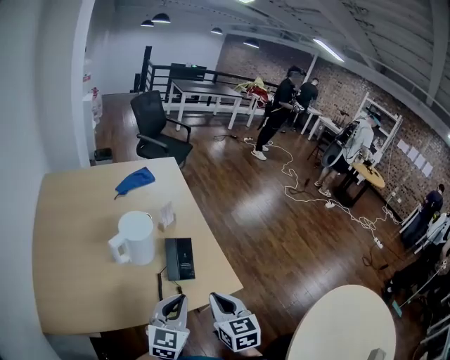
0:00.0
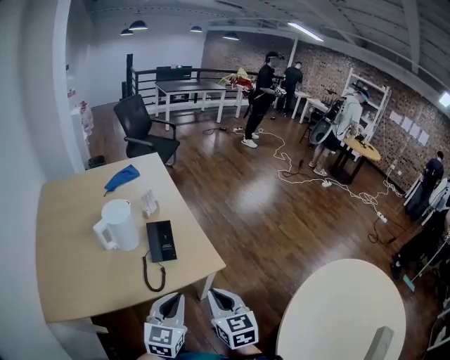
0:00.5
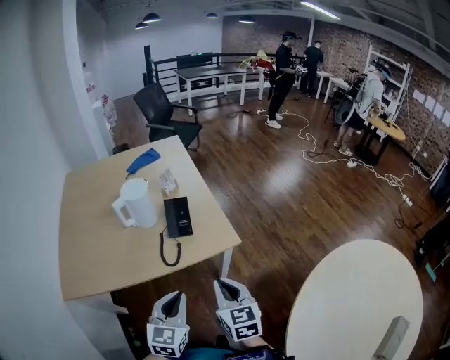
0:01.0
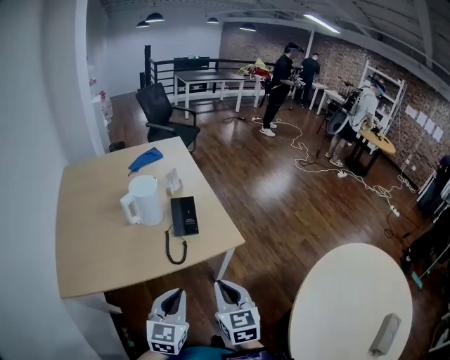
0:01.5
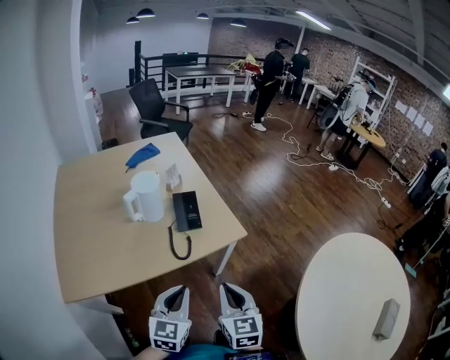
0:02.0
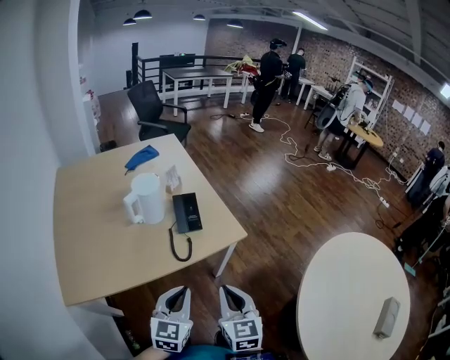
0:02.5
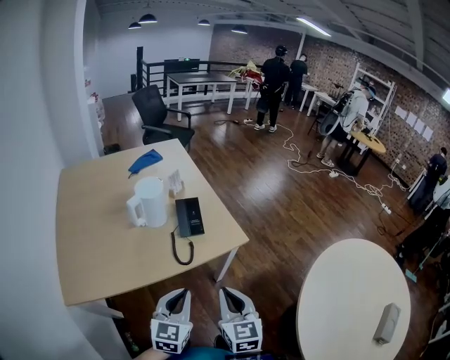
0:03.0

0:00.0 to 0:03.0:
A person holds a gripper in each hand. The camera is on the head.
0:00.0 to 0:01.5: Both grippers travel together backward, some 15 cm.
0:01.5 to 0:03.0: There are only small adjustments of the grippers.

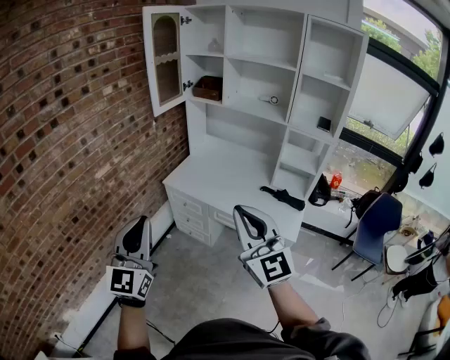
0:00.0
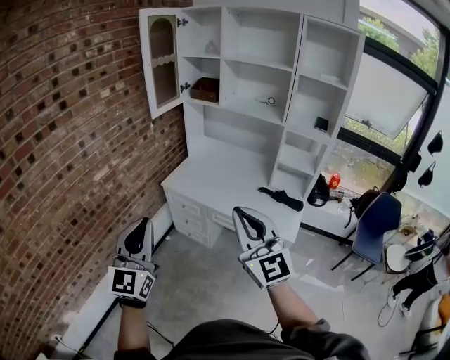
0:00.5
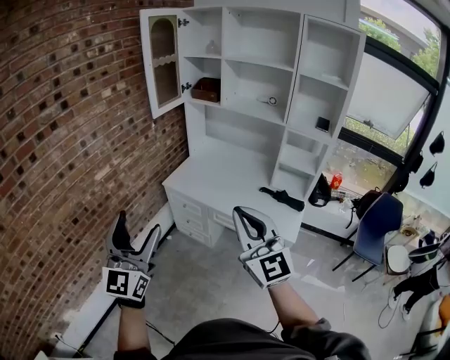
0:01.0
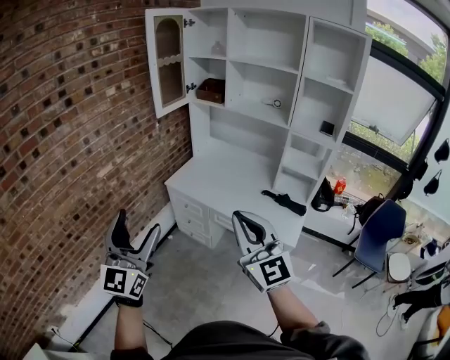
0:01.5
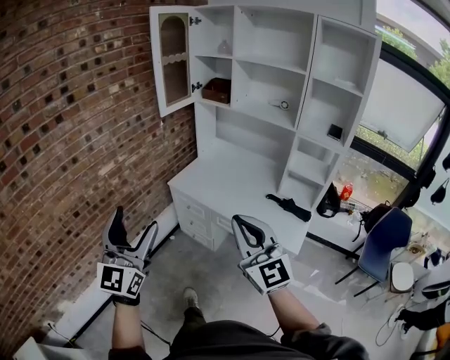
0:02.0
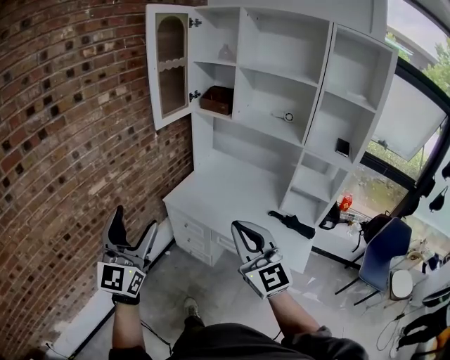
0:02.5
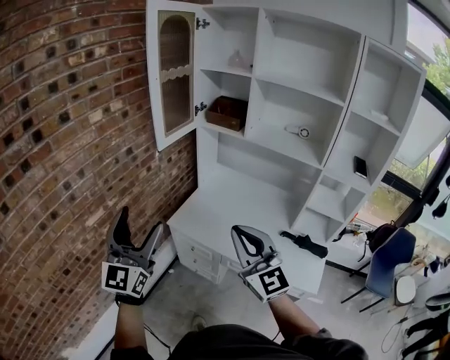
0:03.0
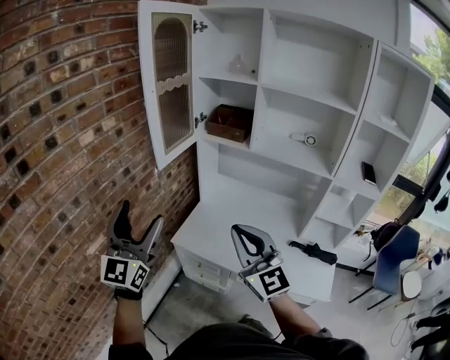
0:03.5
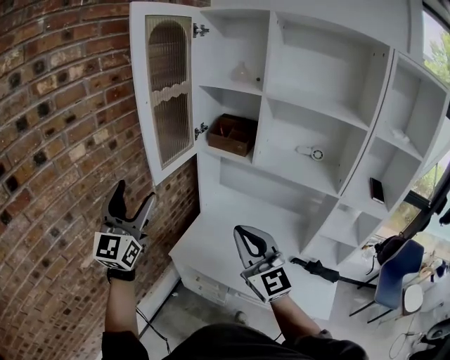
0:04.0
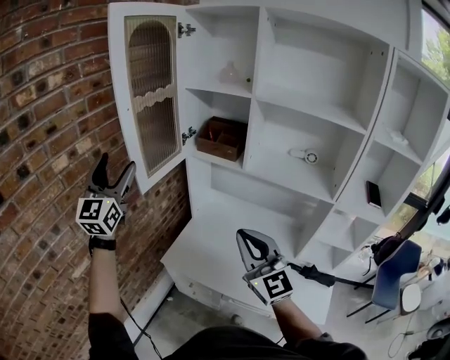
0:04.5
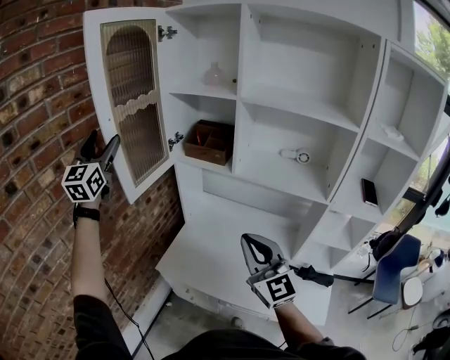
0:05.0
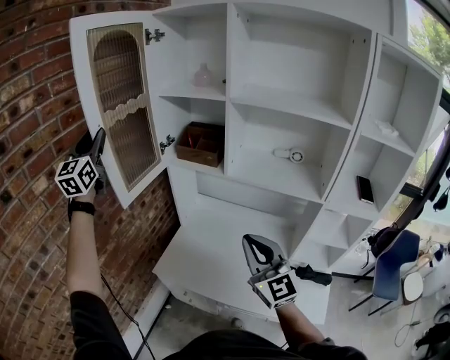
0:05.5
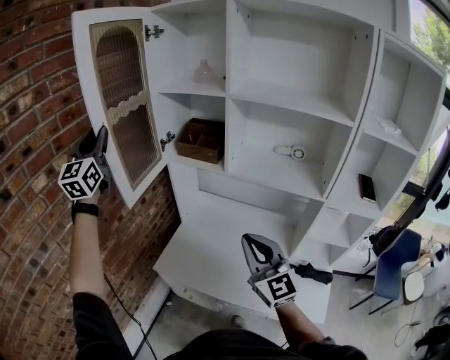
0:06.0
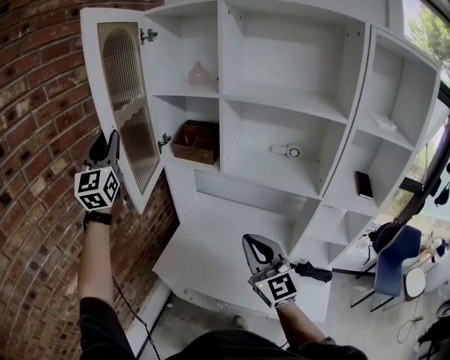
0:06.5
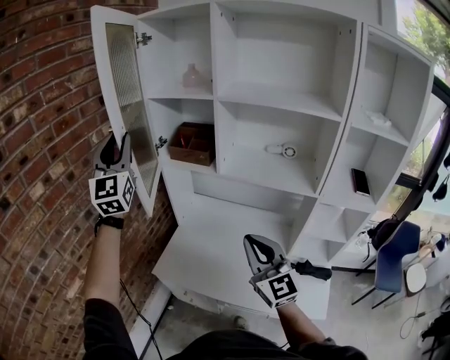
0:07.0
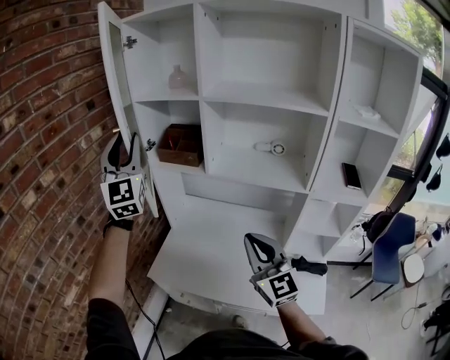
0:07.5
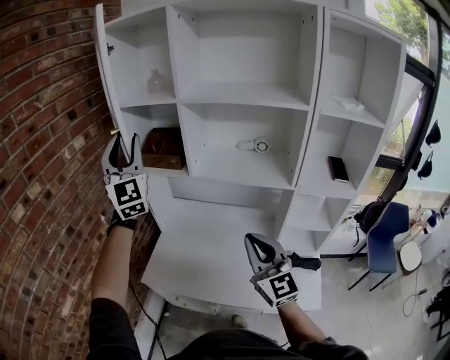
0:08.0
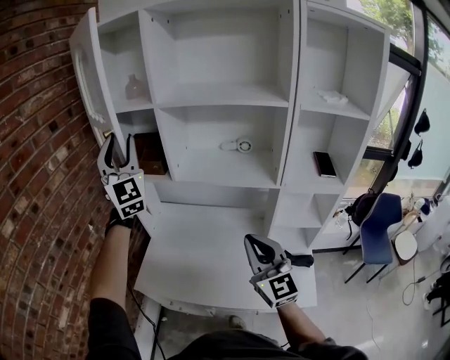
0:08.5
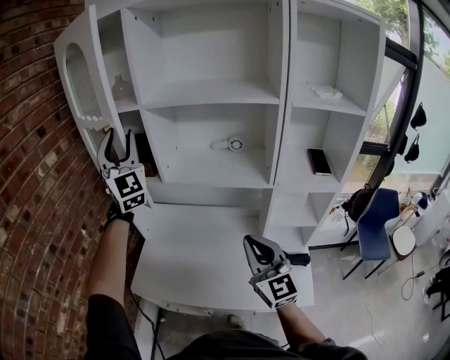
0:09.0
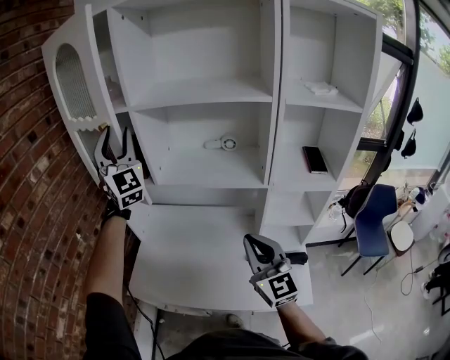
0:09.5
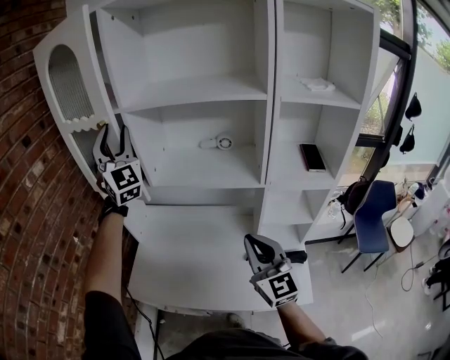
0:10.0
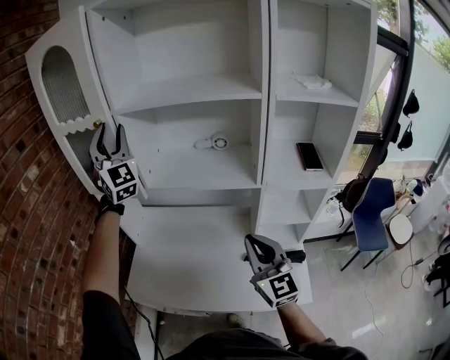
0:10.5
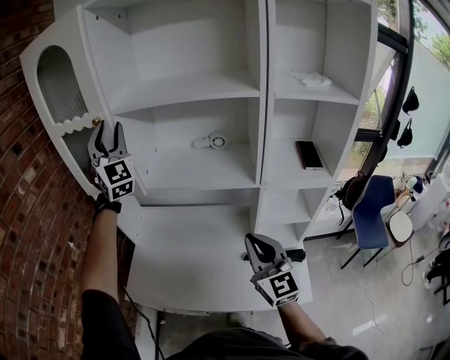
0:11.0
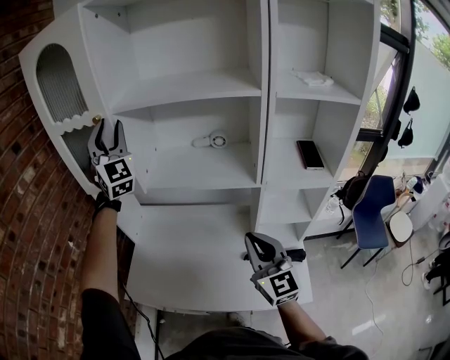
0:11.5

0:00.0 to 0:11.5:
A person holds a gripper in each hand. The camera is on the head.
0:00.0 to 0:02.0: The left gripper opens its fingers. Meanwhile the right gripper ends up roughly 5 cm from where it was.
0:02.0 to 0:04.0: Both grippers are carried forward, approximately 50 cm.
0:04.0 to 0:06.0: The left gripper is displaced forward and upward by about 25 cm, and closes; the right gripper travels to the right by some 10 cm.
0:06.0 to 0:07.5: The left gripper shifts approximately 15 cm to the right.
0:07.5 to 0:09.5: The right gripper is displaced to the right by approximately 15 cm; the left gripper shifts approximately 20 cm to the right and forward.
0:09.5 to 0:11.5: The left gripper shifts about 5 cm forward.

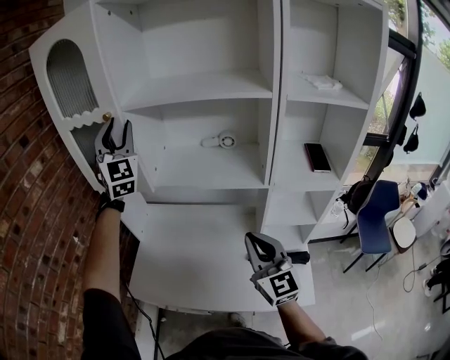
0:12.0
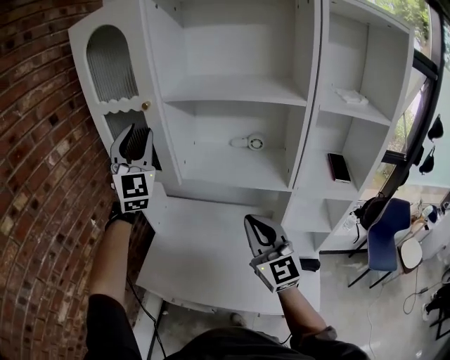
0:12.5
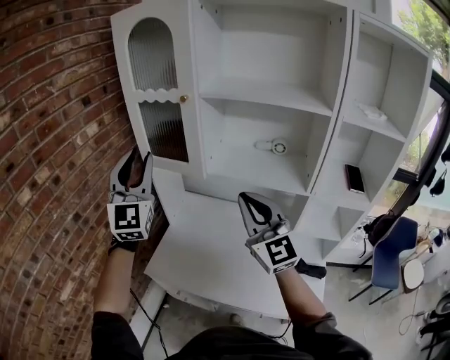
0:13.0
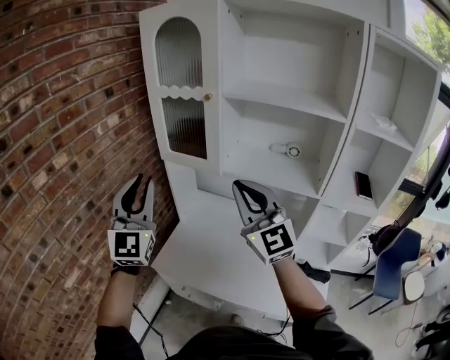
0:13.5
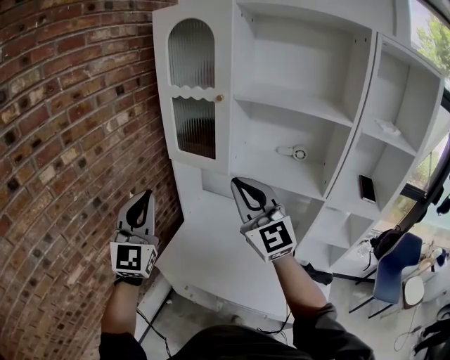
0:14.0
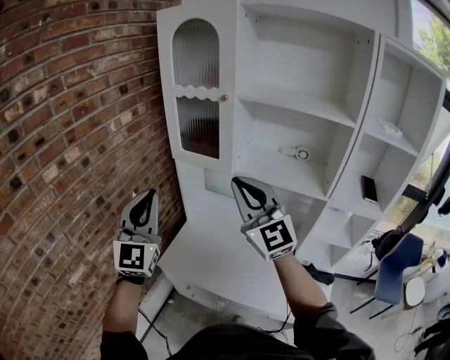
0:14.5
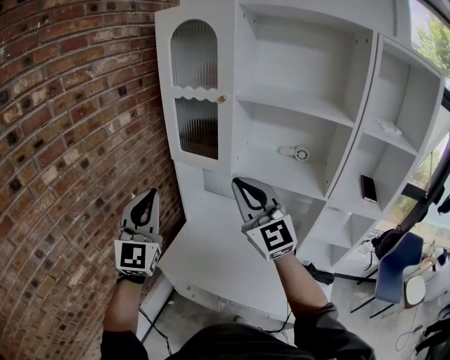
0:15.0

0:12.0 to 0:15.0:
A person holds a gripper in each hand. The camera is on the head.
0:12.0 to 0:13.5: The left gripper travels backward and to the left by approximately 30 cm. Meanwhile the right gripper heads to the left and upward, covering some 25 cm, and swivels roughly 30 degrees.
0:13.5 to 0:15.0: The grippers make only small movements.

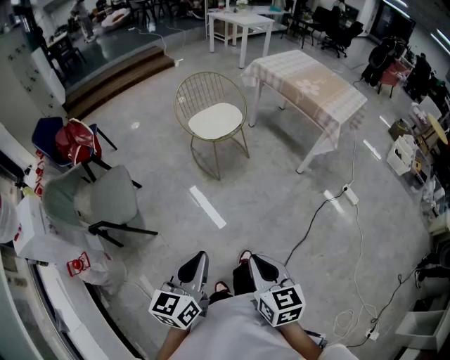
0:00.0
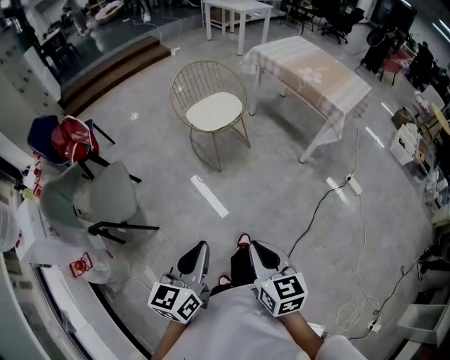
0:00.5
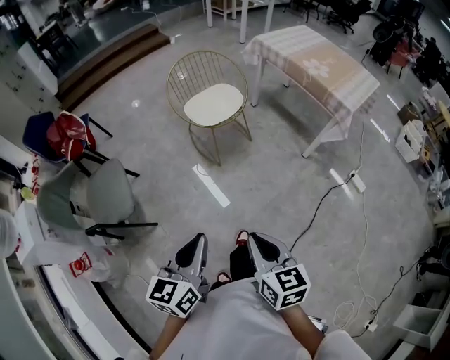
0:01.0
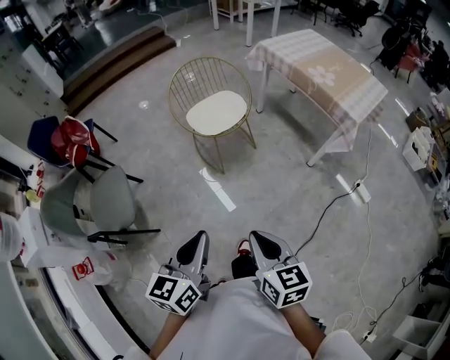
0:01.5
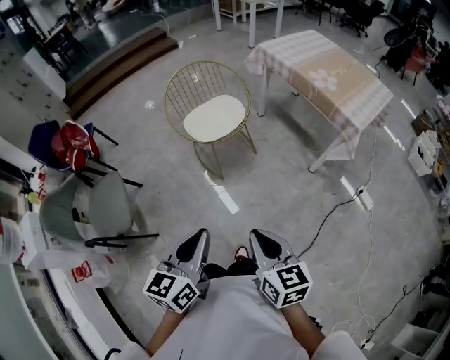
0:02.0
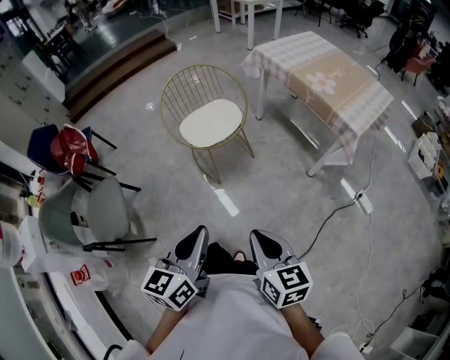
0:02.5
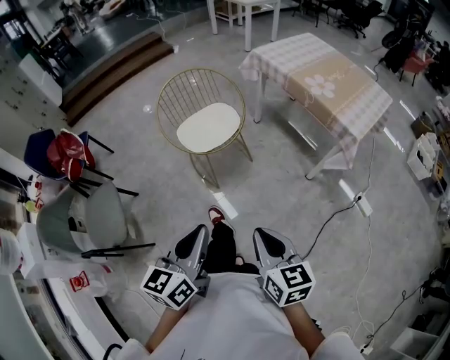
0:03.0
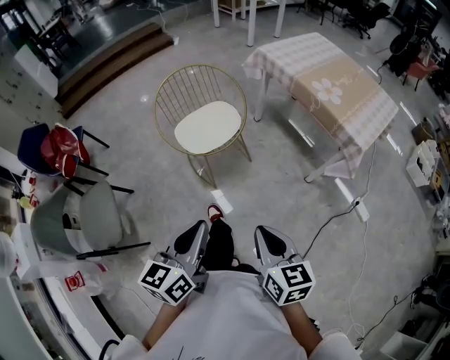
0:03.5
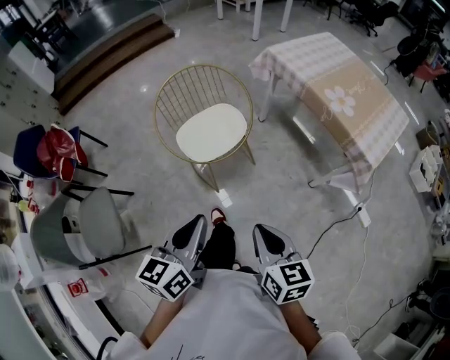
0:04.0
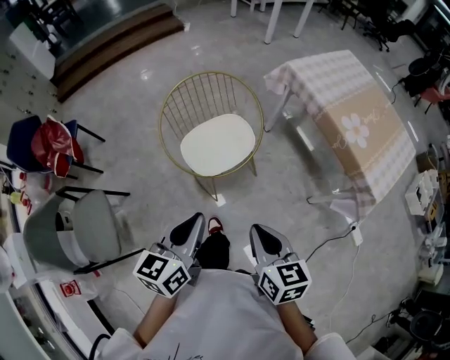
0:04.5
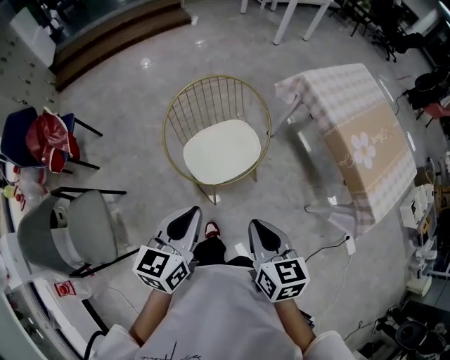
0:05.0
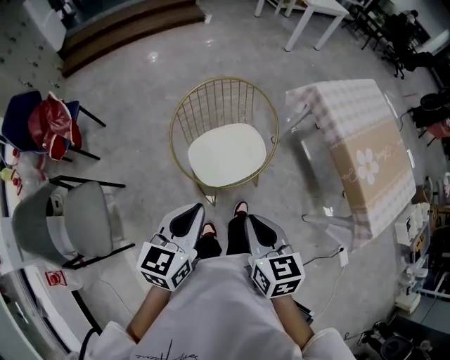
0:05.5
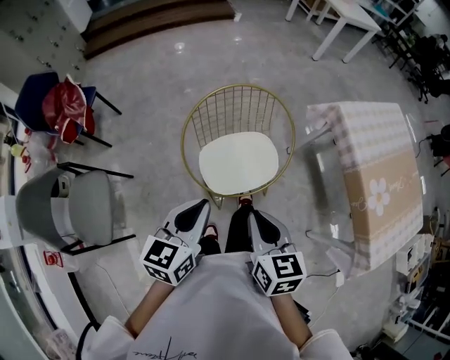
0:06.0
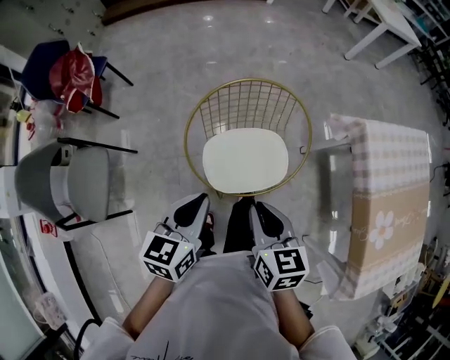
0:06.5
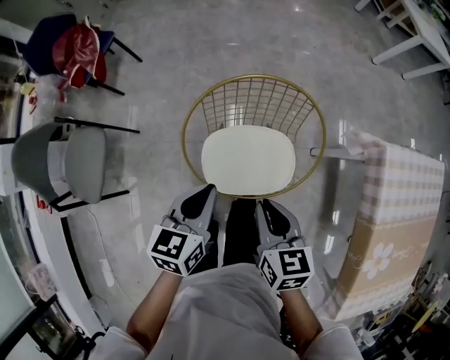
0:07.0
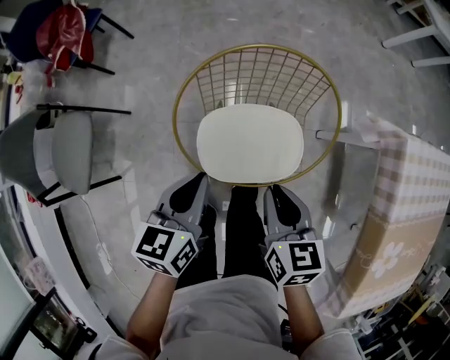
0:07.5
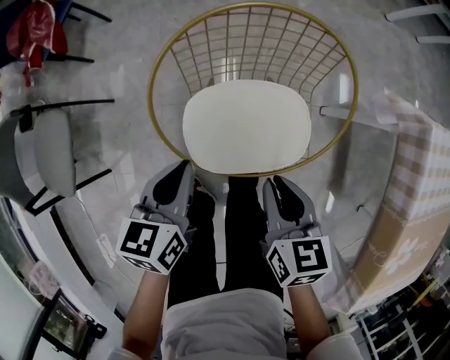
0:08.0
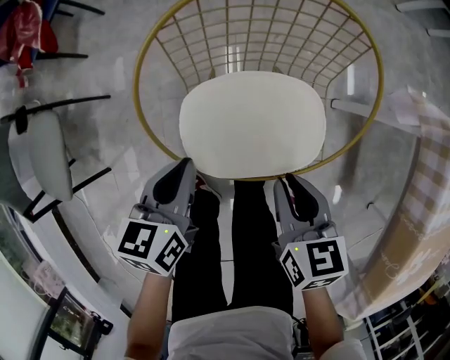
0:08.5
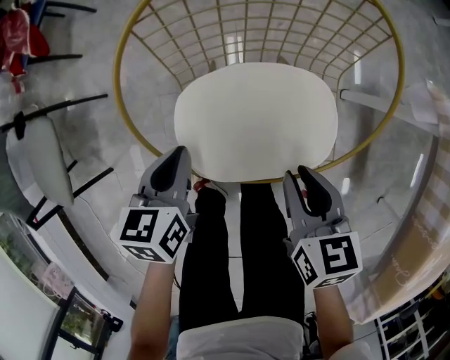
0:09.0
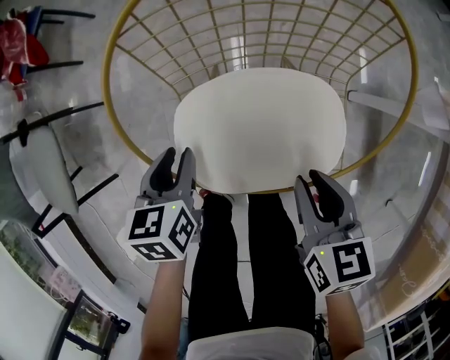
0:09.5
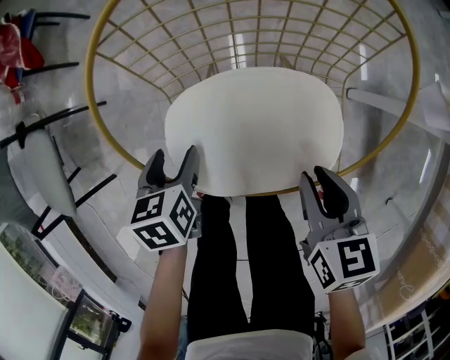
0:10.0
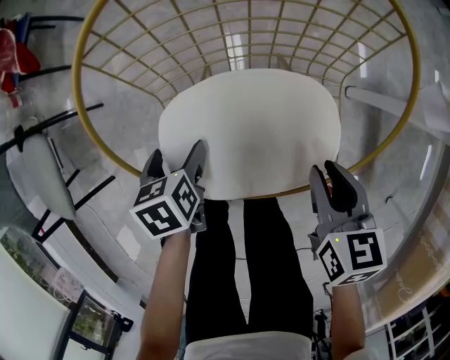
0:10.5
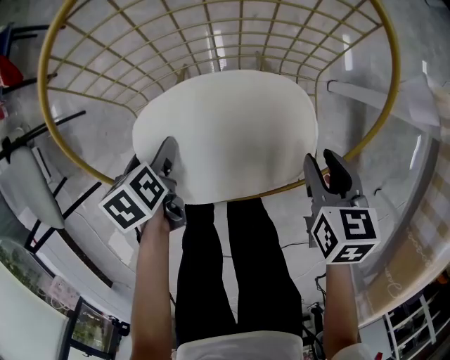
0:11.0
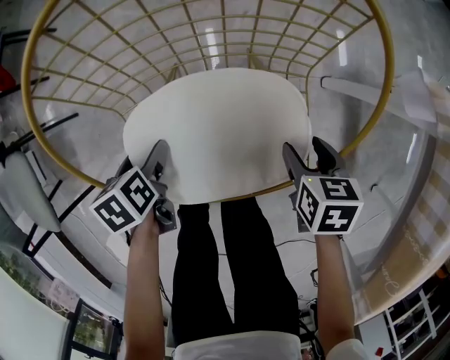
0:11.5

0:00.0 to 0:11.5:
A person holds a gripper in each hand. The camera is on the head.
0:00.0 to 0:02.0: The left gripper heads forward and to the right, covering roughly 25 cm. Meanwhile the right gripper shifts roughly 25 cm forward.
0:02.0 to 0:04.0: Both grippers travel together forward, roughly 25 cm.
0:04.0 to 0:06.0: The grippers both shift forward by approximately 30 cm.
0:06.0 to 0:07.5: The right gripper moves forward, downward and to the right, approximately 25 cm; the left gripper goes about 20 cm downward and forward, and turns by approximately 30 degrees.
0:07.5 to 0:09.5: Both grippers move downward, approximately 25 cm. The left gripper rotates roughly 20 degrees.
0:09.5 to 0:11.5: The left gripper shifts roughly 10 cm downward, rotates about 20 degrees, and opens up, while the right gripper shifts some 15 cm to the right and downward, turns by some 20 degrees, and opens up.
